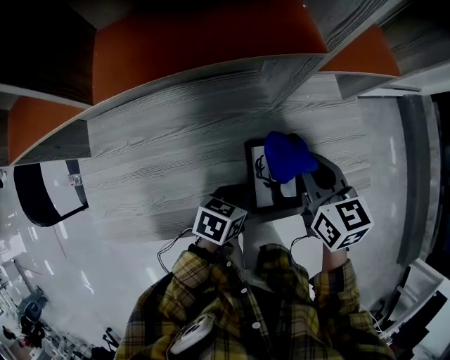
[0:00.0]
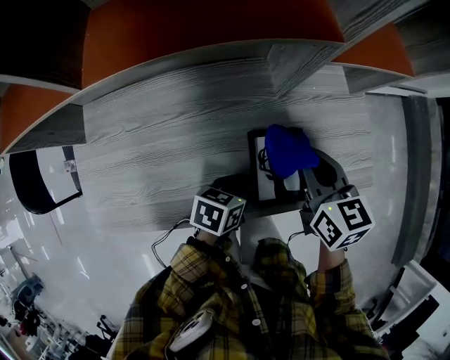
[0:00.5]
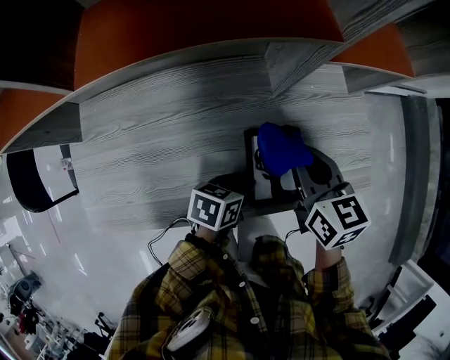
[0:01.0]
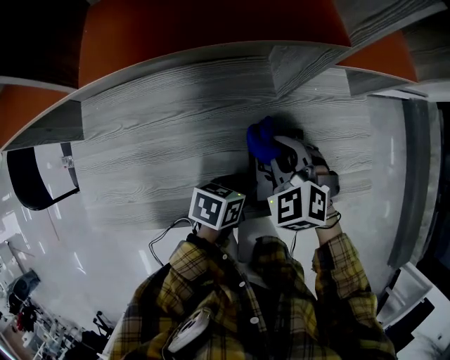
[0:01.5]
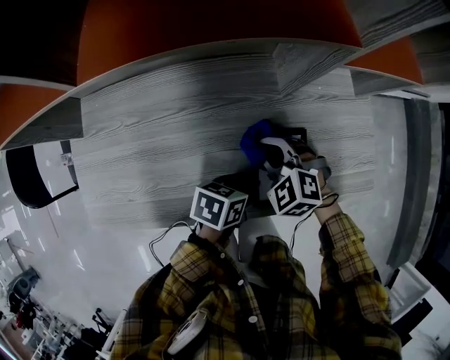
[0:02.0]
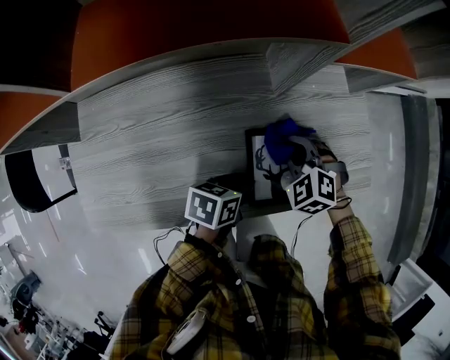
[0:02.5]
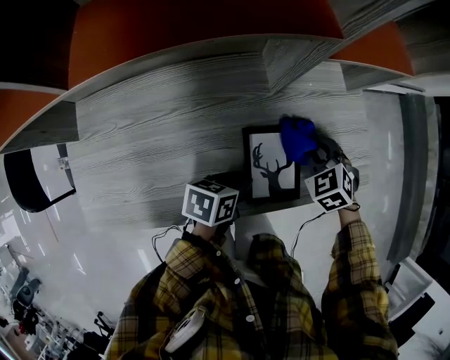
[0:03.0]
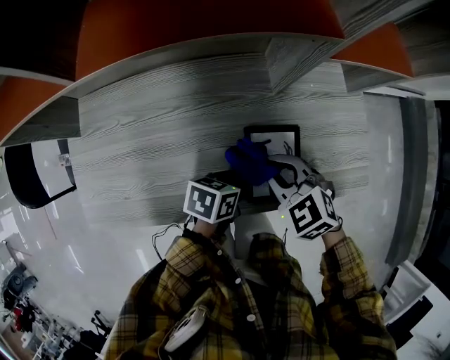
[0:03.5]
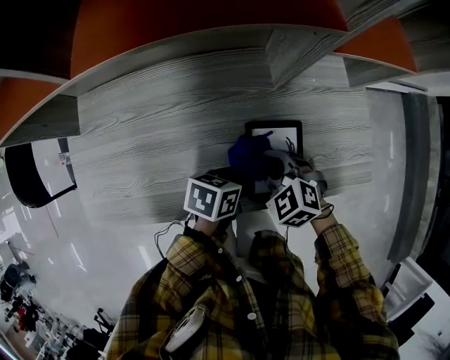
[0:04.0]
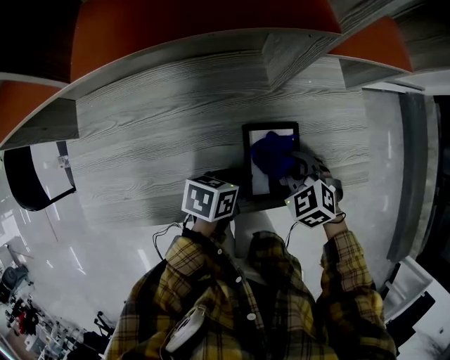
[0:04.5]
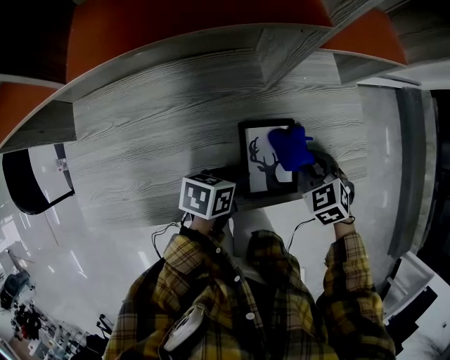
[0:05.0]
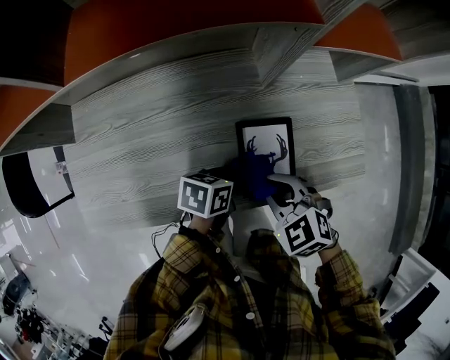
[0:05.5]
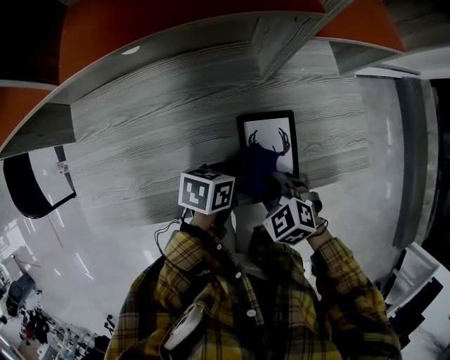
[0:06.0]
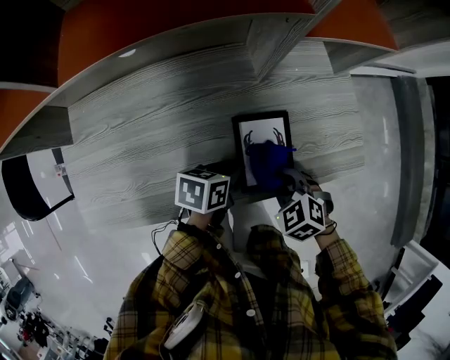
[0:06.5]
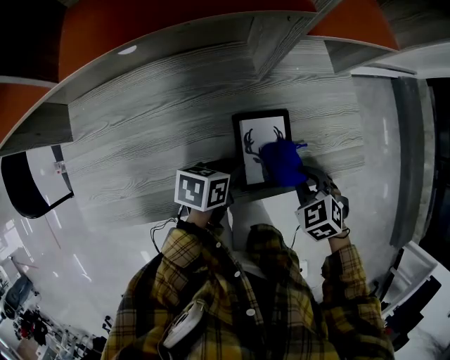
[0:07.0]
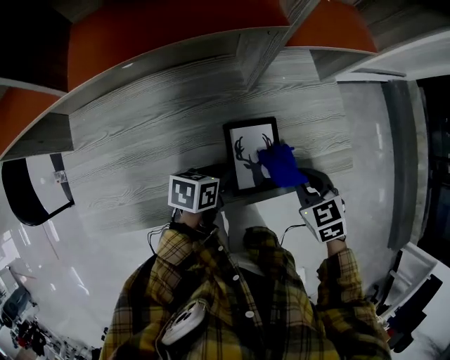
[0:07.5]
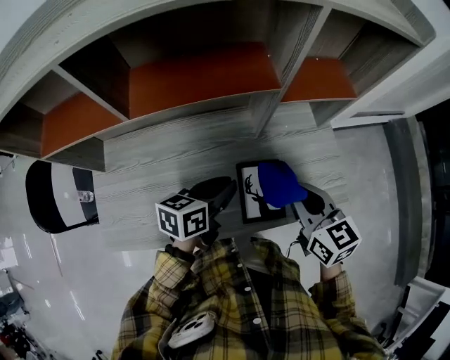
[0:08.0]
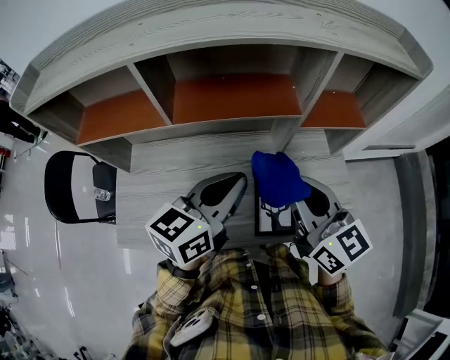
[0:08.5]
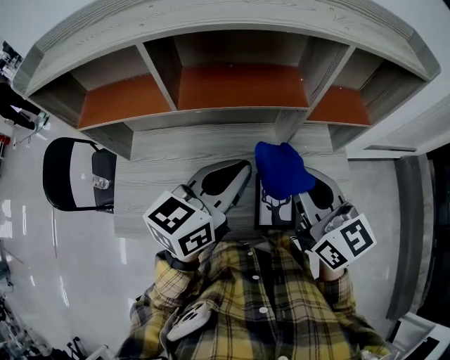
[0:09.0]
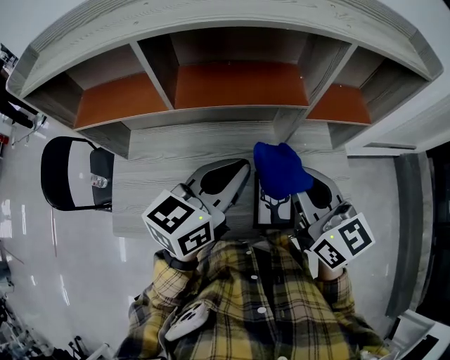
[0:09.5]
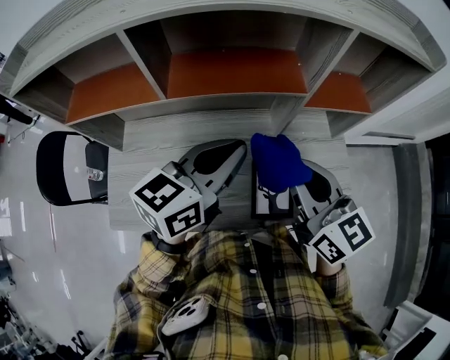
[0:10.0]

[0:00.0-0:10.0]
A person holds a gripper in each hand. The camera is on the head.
0:00.0 to 0:02.0: The right gripper heads downward and to the left, covering about 15 cm, and rotates around the line of its fingers by roughly 60 degrees, counterclockwise from behind.
0:02.0 to 0:04.0: The right gripper reaches about 15 cm to the right, then returns.
0:04.0 to 0:06.0: The right gripper goes roughly 5 cm backward, and goes to the right and returns, about 15 cm each way.
0:06.0 to 0:08.0: The left gripper shifts approximately 15 cm upward, and swivels approximately 20 degrees, while the right gripper shifts roughly 25 cm upward and forward, and tips its fingers upward by roughly 30 degrees.
0:08.0 to 0:10.0: The right gripper shifts roughly 15 cm upward and to the left; the left gripper moves upward, approximately 20 cm, and swivels some 30 degrees.

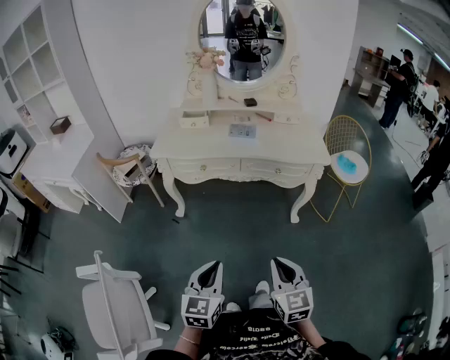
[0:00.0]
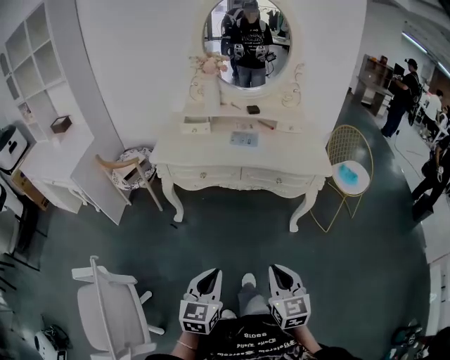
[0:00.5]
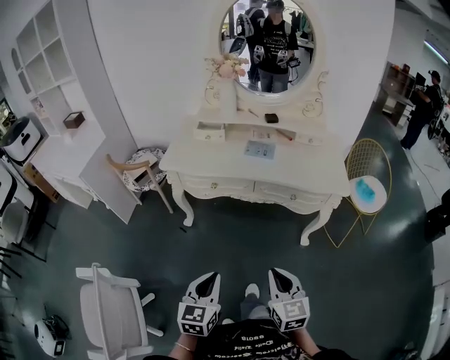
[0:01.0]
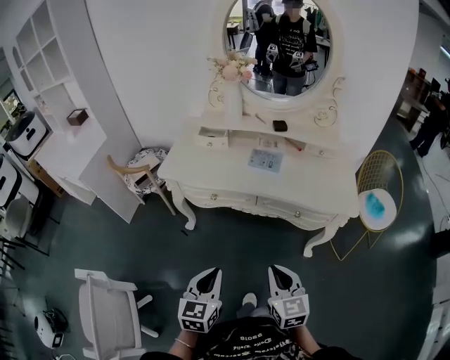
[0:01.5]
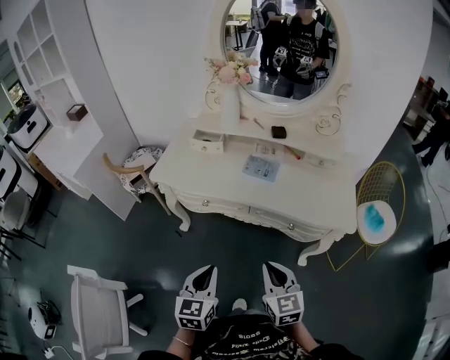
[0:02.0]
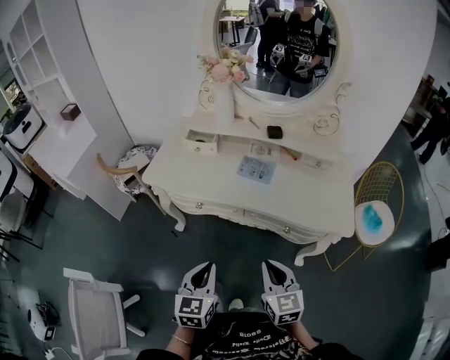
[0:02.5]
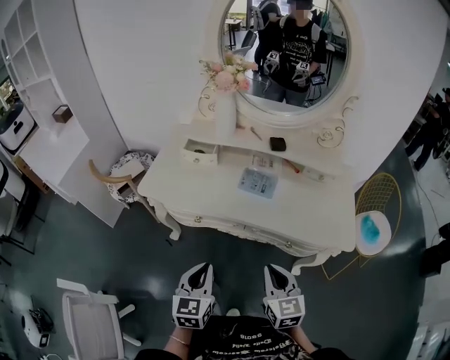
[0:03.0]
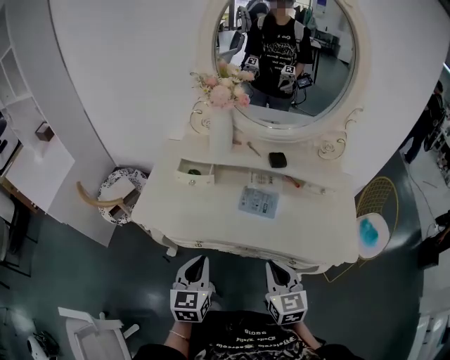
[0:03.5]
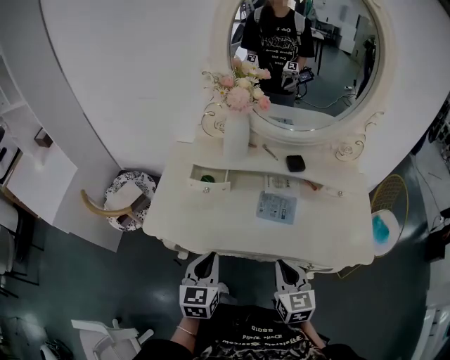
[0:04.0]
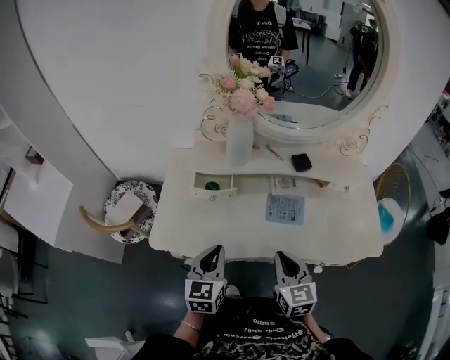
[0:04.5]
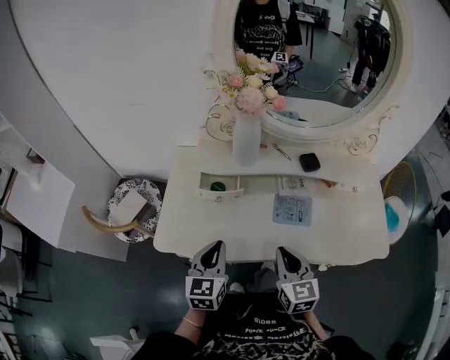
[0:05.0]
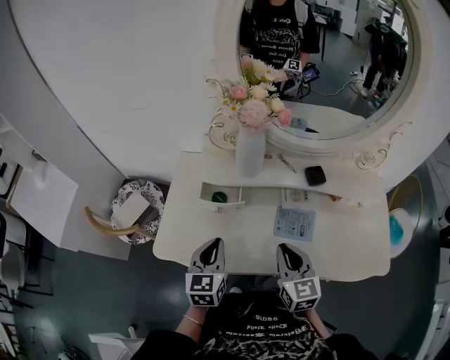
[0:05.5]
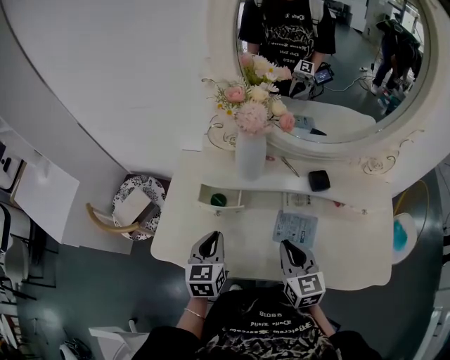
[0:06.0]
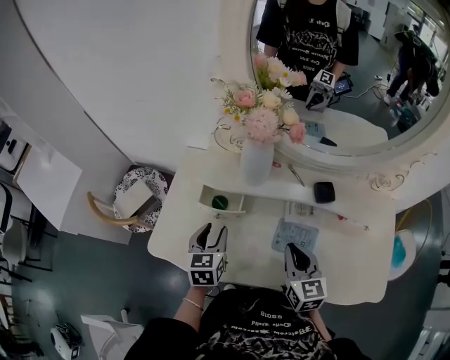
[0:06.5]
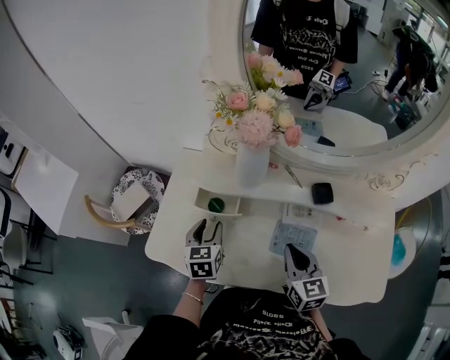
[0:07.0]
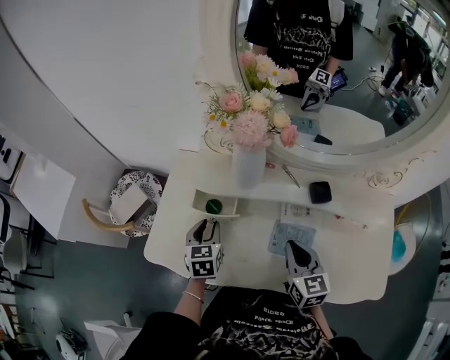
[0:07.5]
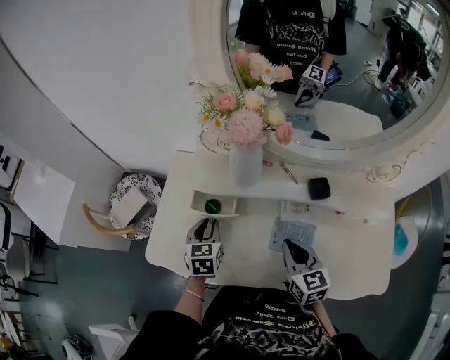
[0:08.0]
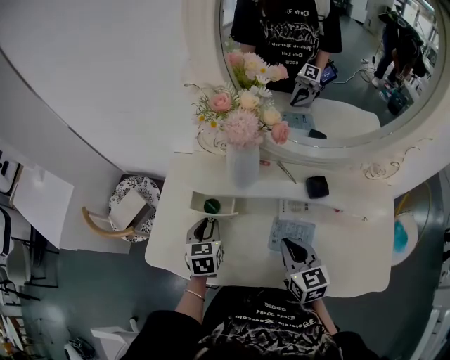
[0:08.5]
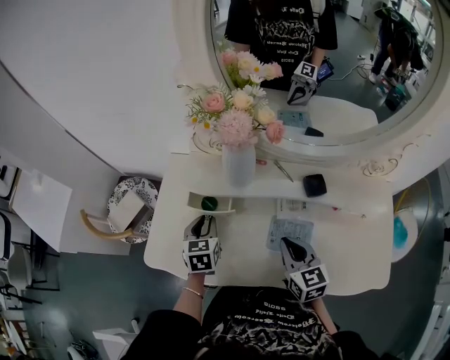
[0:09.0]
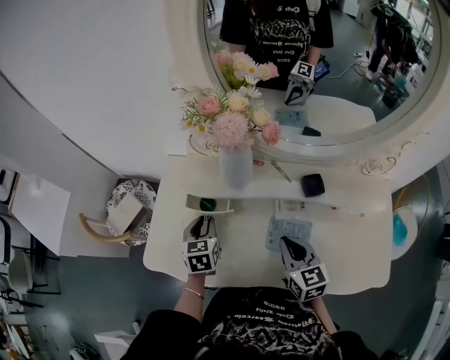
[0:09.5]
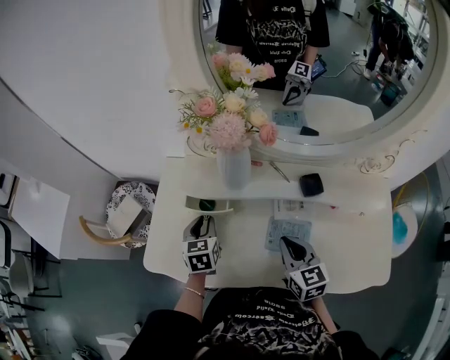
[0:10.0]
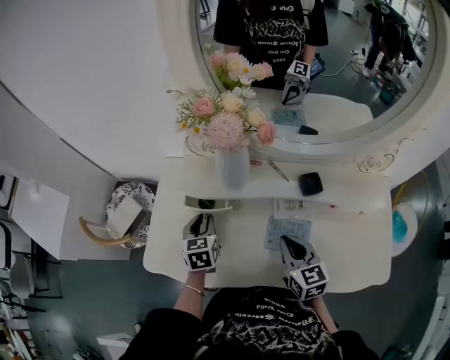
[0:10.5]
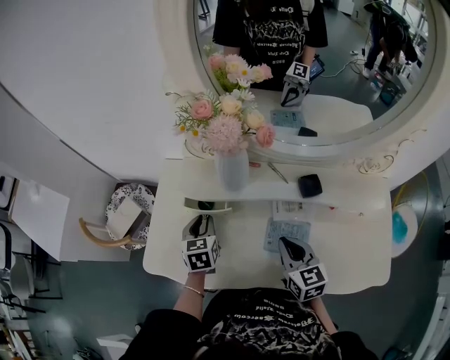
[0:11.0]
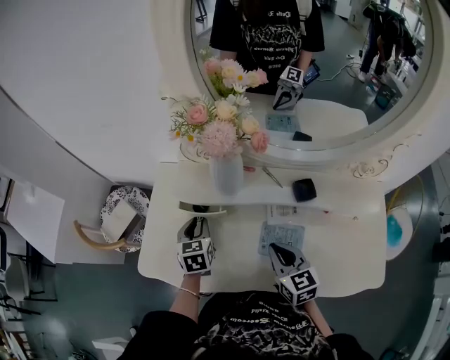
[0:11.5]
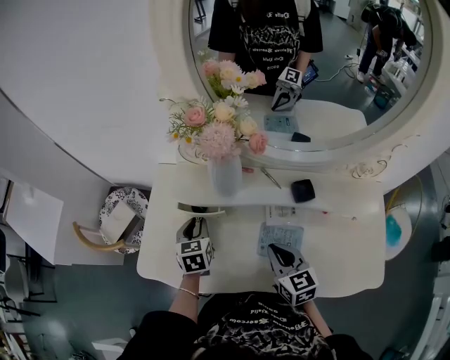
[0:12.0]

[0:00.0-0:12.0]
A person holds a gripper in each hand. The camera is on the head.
0:00.0 to 0:02.0: The grippers both shift forward by roughly 25 cm.
0:02.0 to 0:04.0: The grippers both shift forward by some 25 cm.
0:04.0 to 0:06.0: The grippers both shift forward by roughly 15 cm.
0:06.0 to 0:08.0: The left gripper moves forward and downward, approximately 10 cm.
0:08.0 to 0:12.0: There are only small adjustments of the grippers.

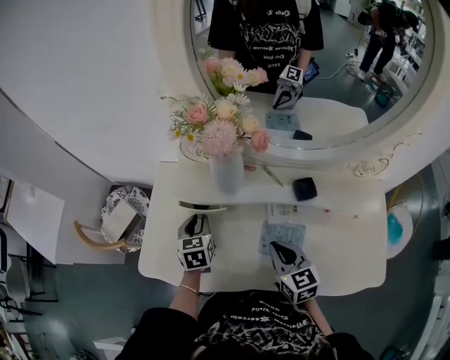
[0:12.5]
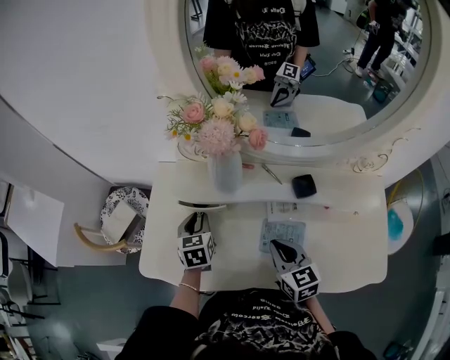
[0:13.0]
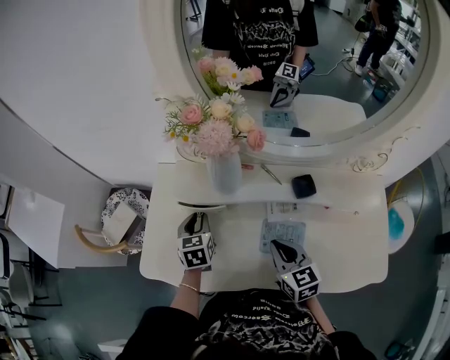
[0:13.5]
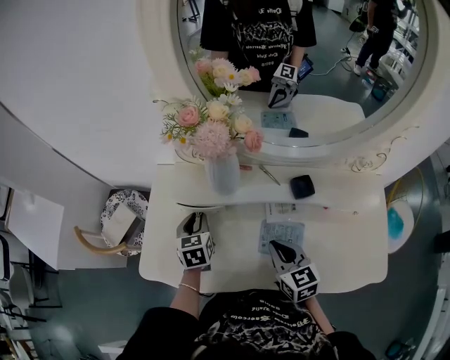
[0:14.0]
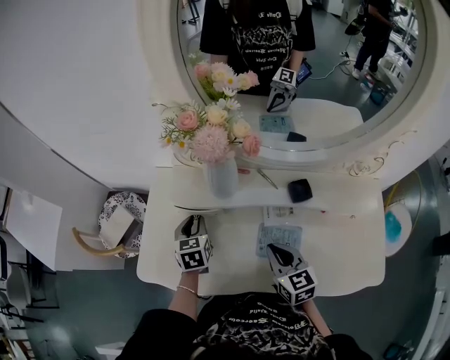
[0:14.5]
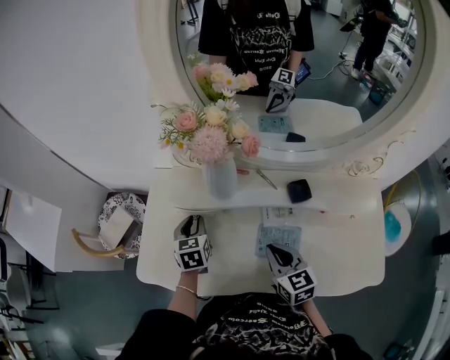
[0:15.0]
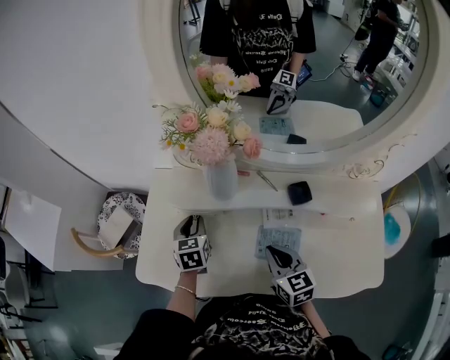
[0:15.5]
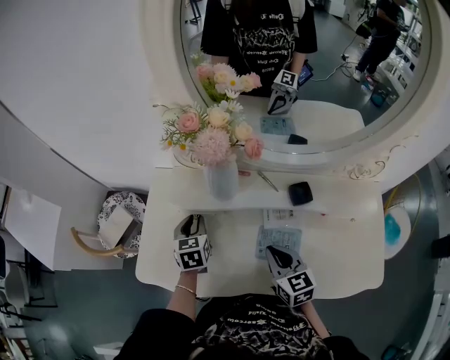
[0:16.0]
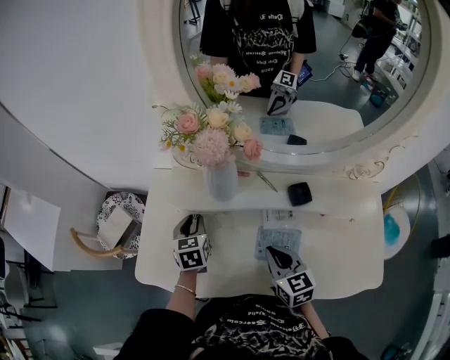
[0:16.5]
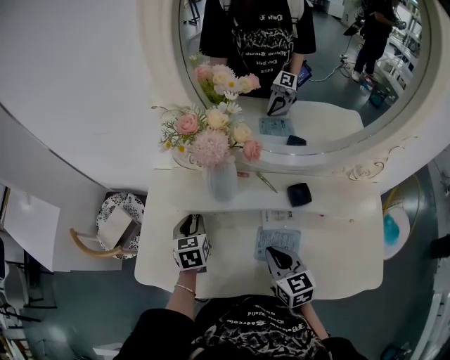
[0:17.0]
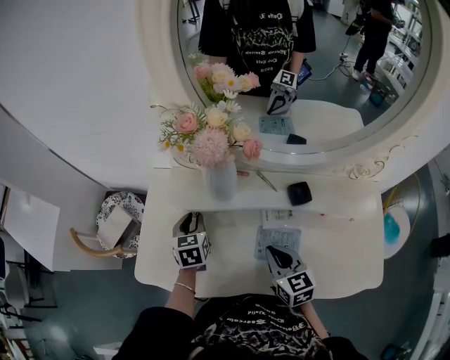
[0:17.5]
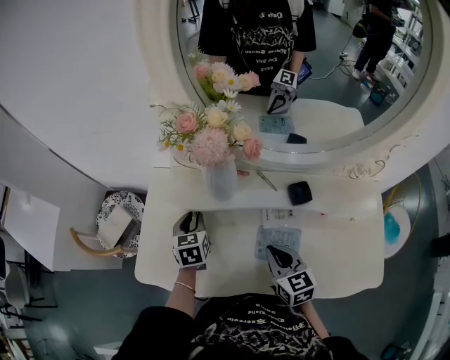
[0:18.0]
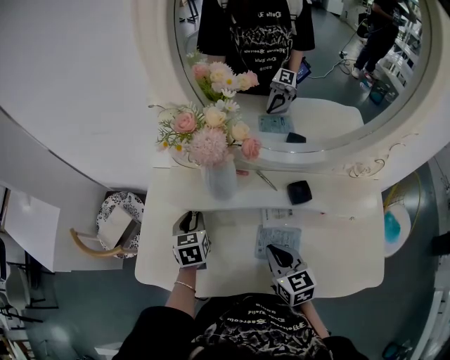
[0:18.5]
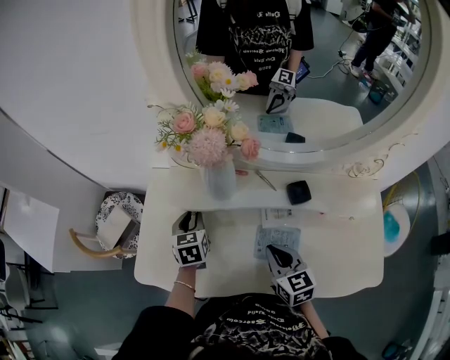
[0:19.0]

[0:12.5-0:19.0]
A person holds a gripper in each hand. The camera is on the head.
0:12.5 to 0:14.5: Neither gripper changes place.
0:14.5 to 0:17.0: The two grippers keep their place.
0:17.0 to 0:19.0: Neither gripper changes place.
